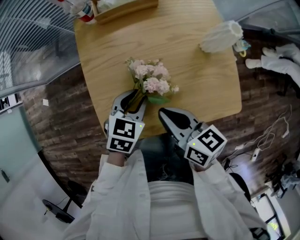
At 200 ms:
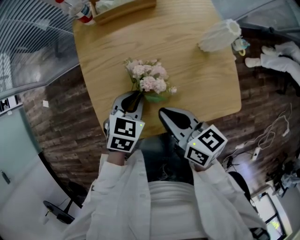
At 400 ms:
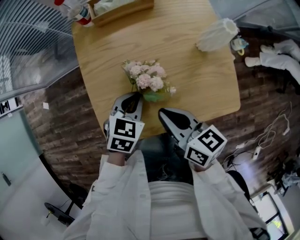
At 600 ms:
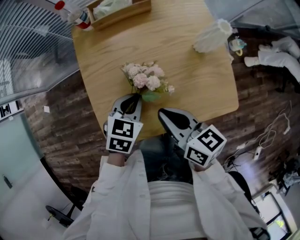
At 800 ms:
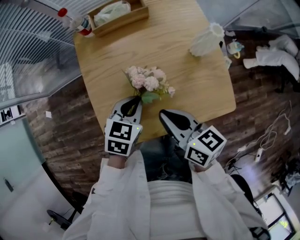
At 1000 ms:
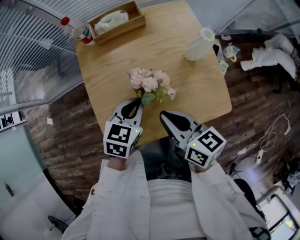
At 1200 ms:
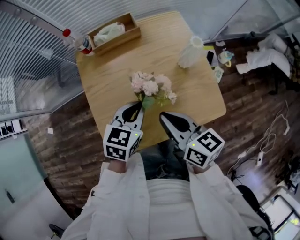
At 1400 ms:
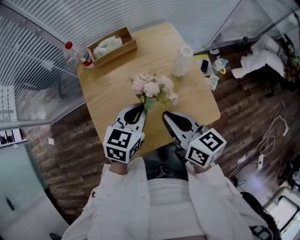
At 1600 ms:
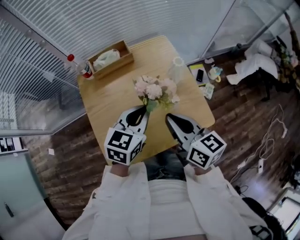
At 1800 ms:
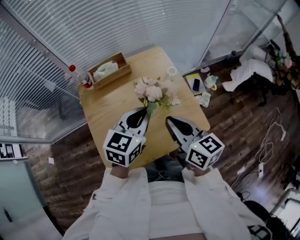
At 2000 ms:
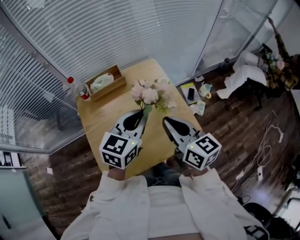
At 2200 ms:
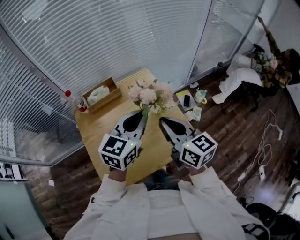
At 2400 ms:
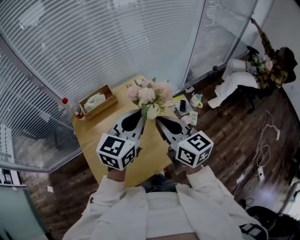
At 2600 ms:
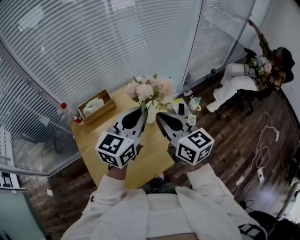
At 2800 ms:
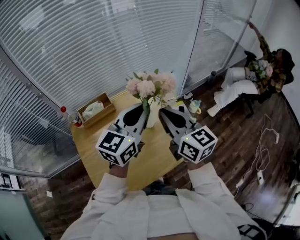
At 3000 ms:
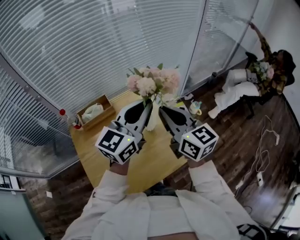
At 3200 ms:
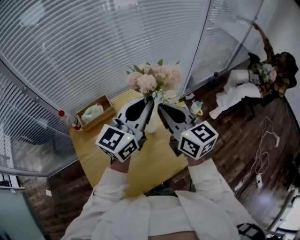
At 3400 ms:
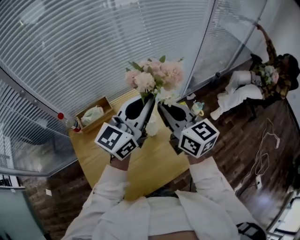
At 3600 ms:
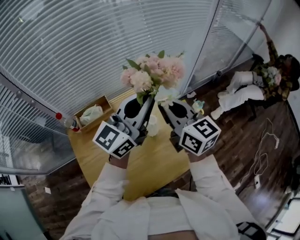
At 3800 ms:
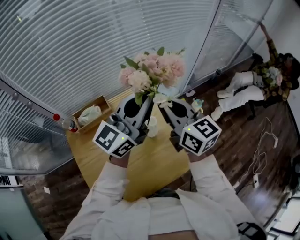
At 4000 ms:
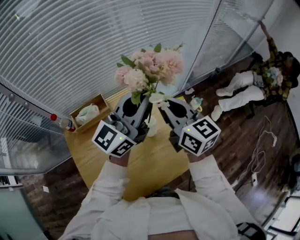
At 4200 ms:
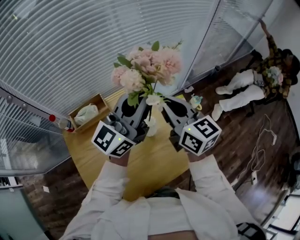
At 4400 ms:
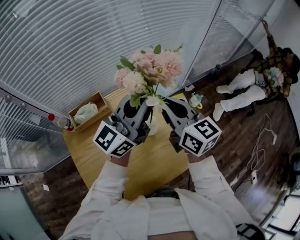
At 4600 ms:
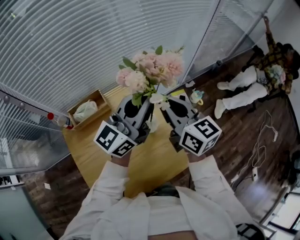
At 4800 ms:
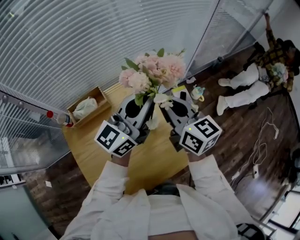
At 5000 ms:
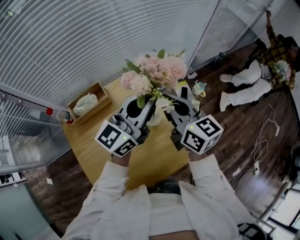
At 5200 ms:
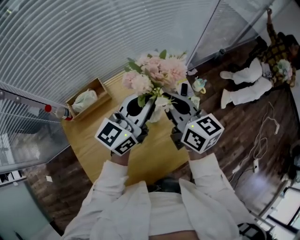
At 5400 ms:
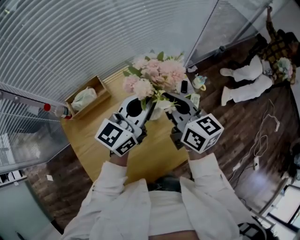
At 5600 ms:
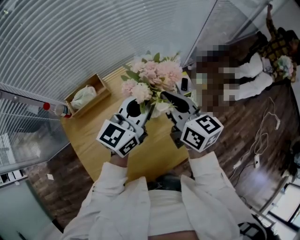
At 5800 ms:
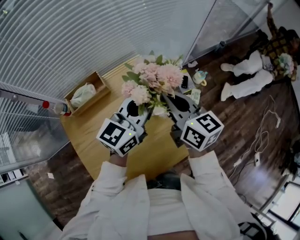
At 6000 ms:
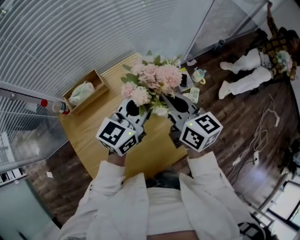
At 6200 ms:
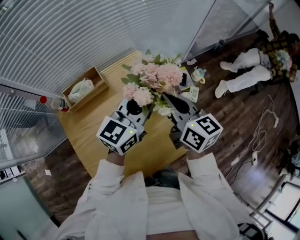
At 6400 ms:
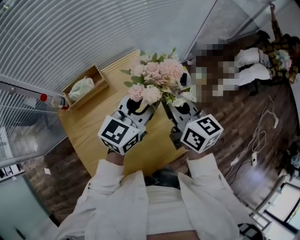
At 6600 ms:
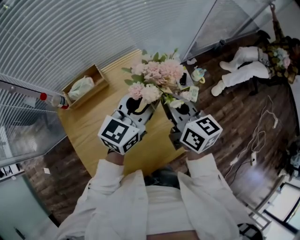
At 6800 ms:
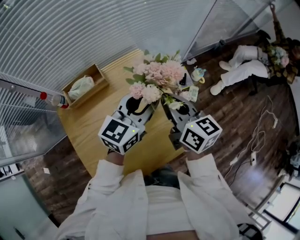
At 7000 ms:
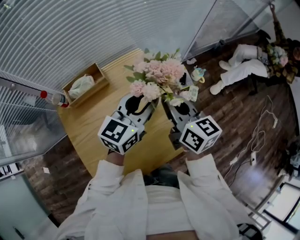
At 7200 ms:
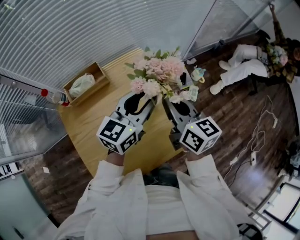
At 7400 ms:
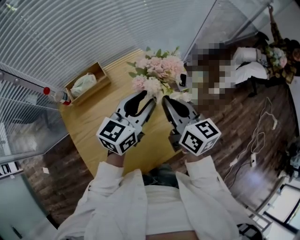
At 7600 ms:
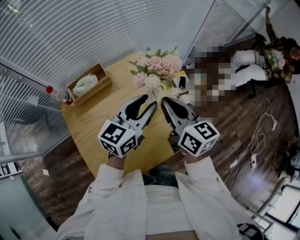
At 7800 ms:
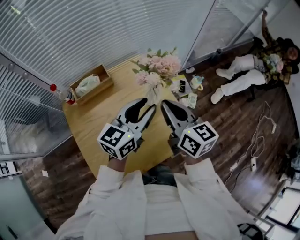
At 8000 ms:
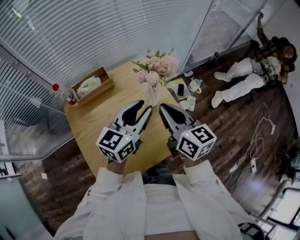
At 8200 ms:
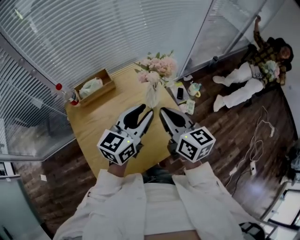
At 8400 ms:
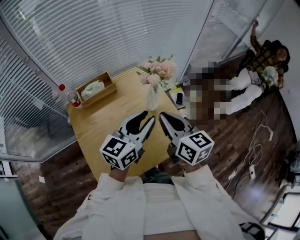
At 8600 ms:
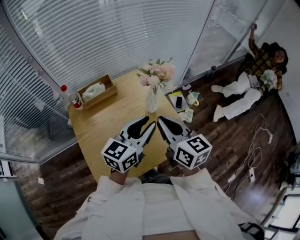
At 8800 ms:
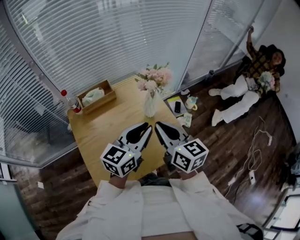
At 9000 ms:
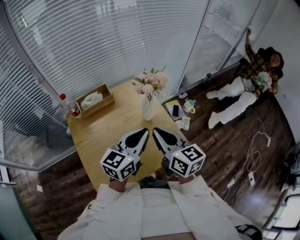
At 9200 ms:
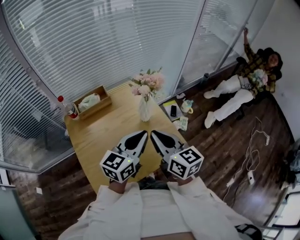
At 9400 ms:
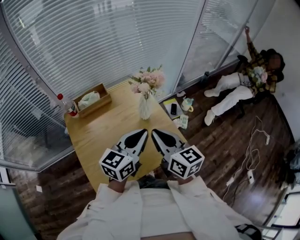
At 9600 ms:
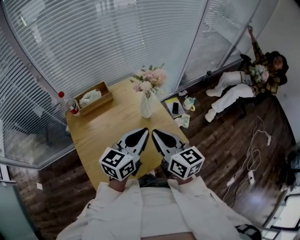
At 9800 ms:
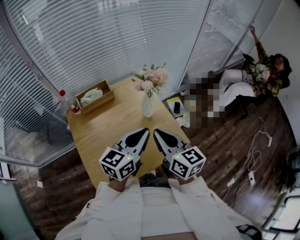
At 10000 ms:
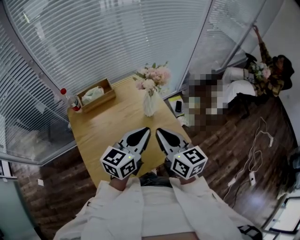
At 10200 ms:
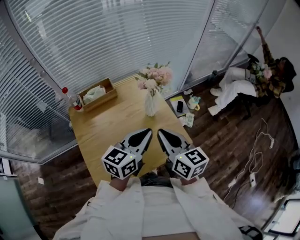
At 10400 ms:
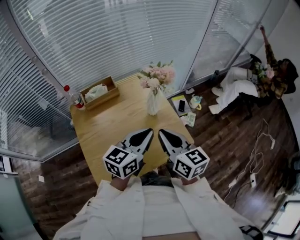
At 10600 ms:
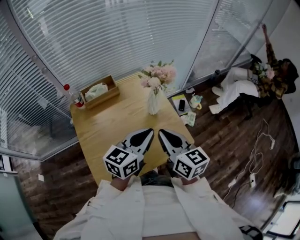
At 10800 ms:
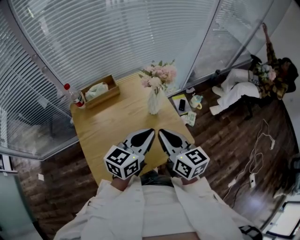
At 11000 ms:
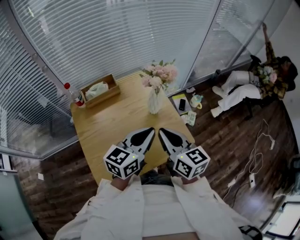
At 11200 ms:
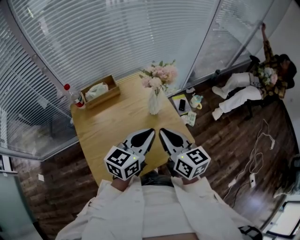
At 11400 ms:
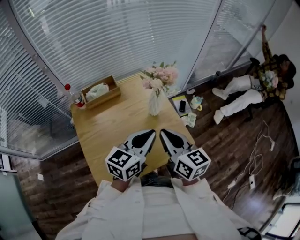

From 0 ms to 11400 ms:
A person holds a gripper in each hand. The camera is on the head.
From 0 ms to 1400 ms: The grippers both shift upward and to the right by about 10 cm. The left gripper closes.
From 1400 ms to 2800 ms: The left gripper moves upward, to the right and forward, approximately 25 cm, and tips its fingers upward by approximately 30 degrees. The right gripper goes some 20 cm upward, forward and to the right, and rotates about 30 degrees.
From 2800 ms to 4200 ms: The two grippers go approximately 10 cm forward. The left gripper changes its angle by some 30 degrees.
From 4200 ms to 5600 ms: The right gripper is displaced downward by roughly 5 cm; the left gripper is displaced downward by about 10 cm, and swivels some 20 degrees.
From 5600 ms to 7200 ms: The left gripper opens its fingers.
From 7200 ms to 8600 ms: Both grippers move backward, approximately 10 cm.
From 8600 ms to 10000 ms: The left gripper closes its fingers.
From 10000 ms to 11400 ms: The two grippers keep their place.

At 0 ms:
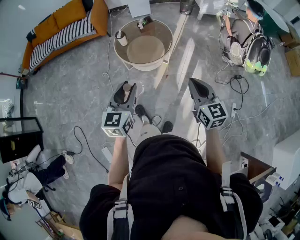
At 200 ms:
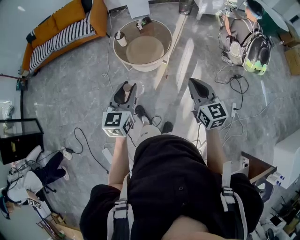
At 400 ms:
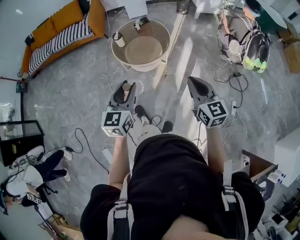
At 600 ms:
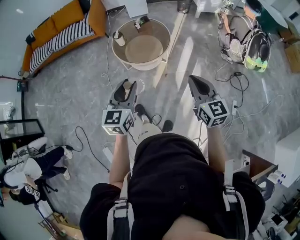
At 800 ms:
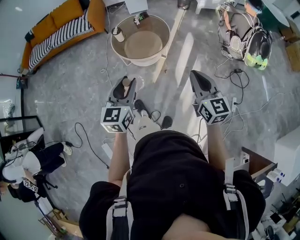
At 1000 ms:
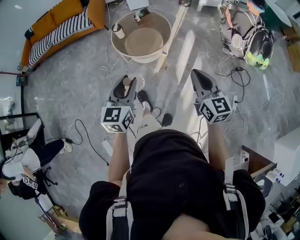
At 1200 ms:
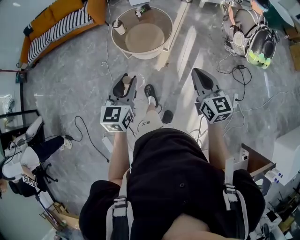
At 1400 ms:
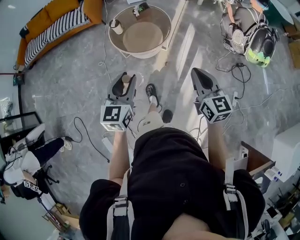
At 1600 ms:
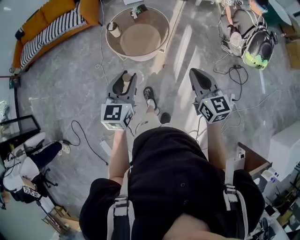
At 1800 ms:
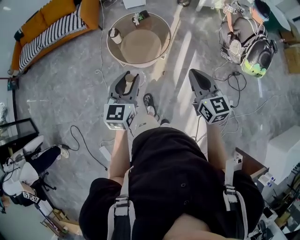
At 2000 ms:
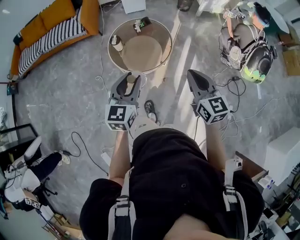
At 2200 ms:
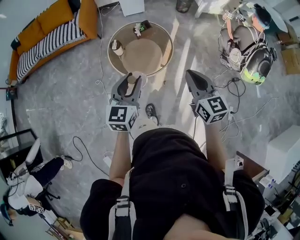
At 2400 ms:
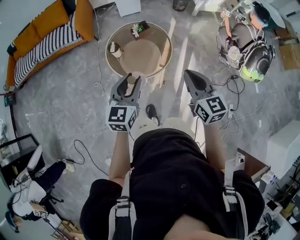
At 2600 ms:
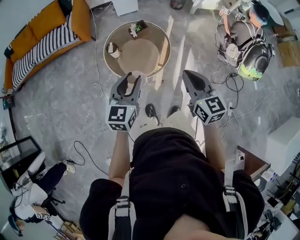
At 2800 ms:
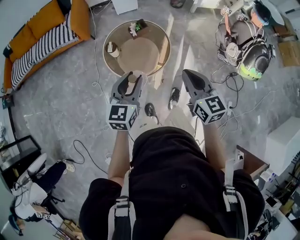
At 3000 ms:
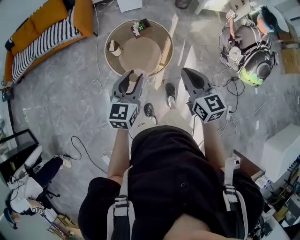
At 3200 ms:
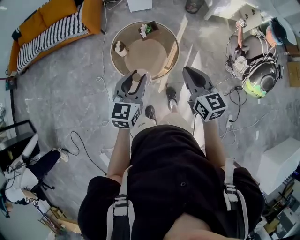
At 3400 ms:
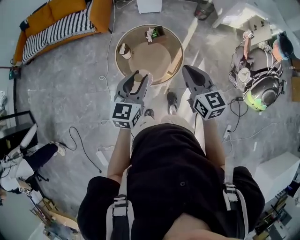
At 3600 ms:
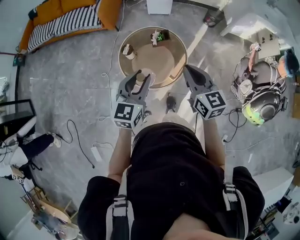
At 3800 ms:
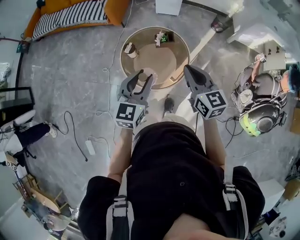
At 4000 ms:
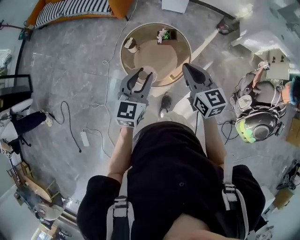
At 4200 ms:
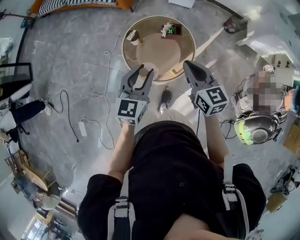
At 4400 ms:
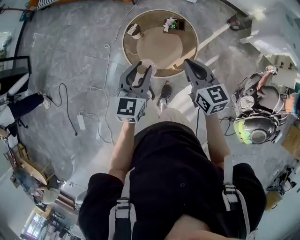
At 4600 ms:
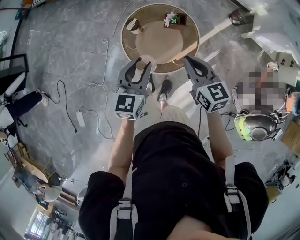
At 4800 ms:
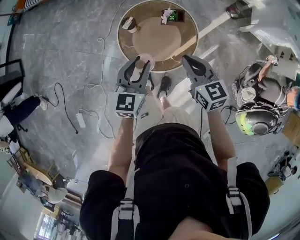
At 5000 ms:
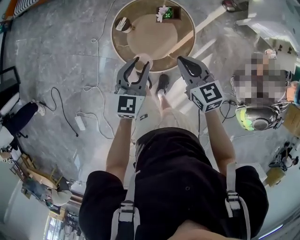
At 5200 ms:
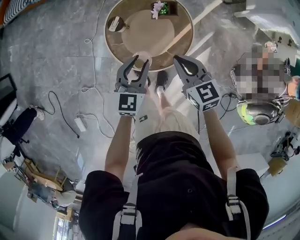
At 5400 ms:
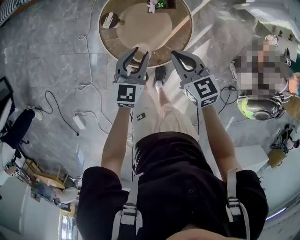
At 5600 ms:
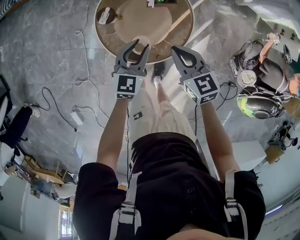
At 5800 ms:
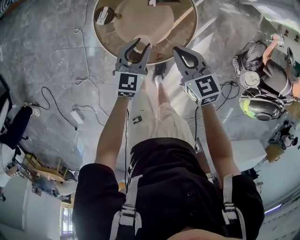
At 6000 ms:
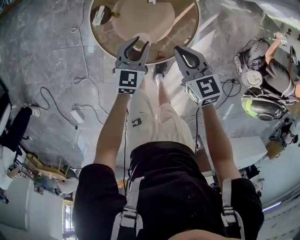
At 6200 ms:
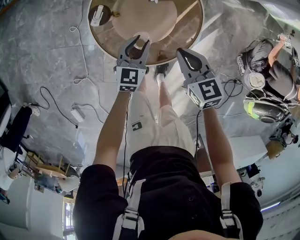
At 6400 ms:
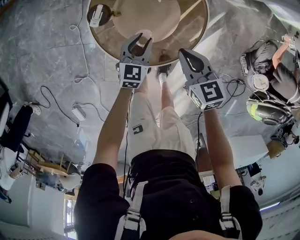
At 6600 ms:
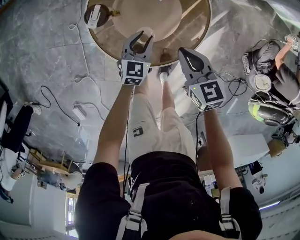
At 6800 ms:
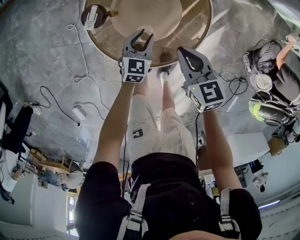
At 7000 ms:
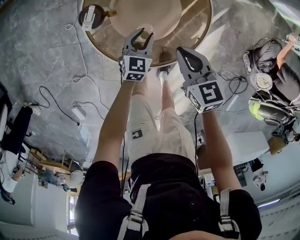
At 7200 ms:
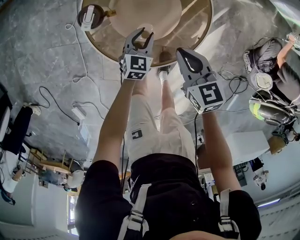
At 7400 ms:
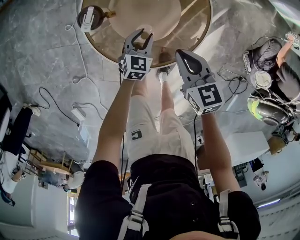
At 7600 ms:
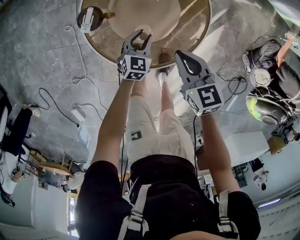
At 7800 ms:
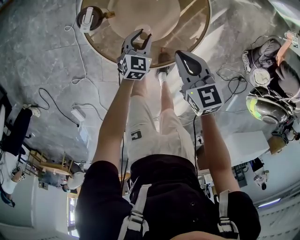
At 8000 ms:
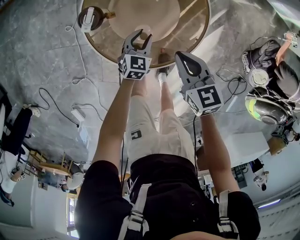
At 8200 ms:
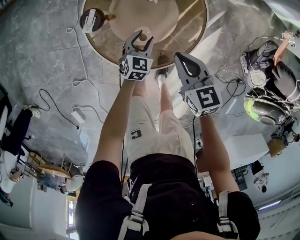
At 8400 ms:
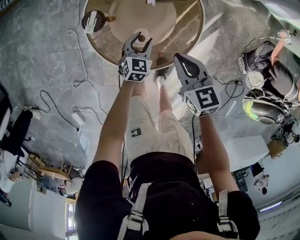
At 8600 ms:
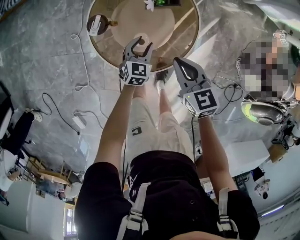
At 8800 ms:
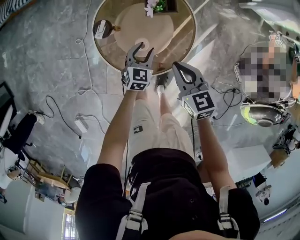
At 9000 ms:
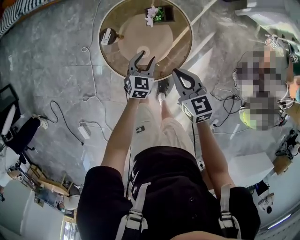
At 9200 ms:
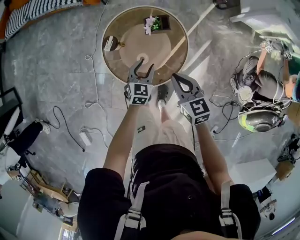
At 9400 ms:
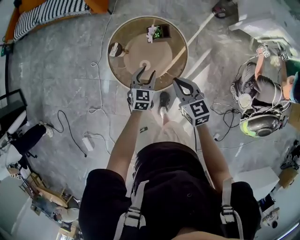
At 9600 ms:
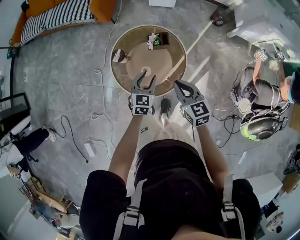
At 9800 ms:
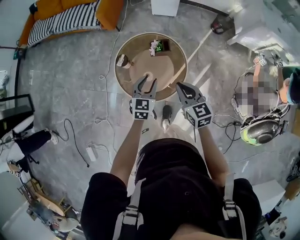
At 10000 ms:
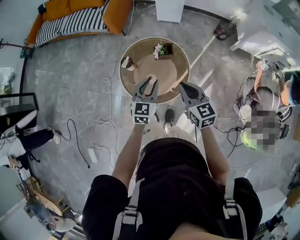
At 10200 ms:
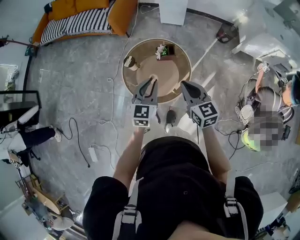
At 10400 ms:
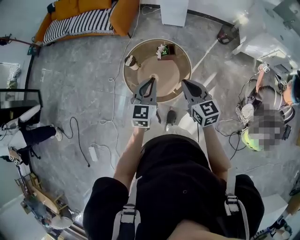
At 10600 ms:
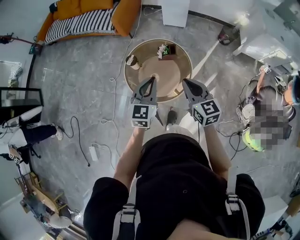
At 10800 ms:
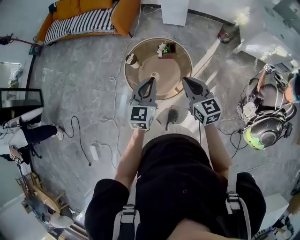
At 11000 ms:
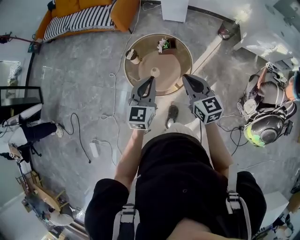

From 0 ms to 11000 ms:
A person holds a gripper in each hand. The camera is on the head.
From 0 ms to 1600 ms: The grippers both shift forward by roughly 5 cm.
From 1600 ms to 3200 ms: The grippers both shift forward by approximately 20 cm.
From 3200 ms to 4800 ms: The right gripper moves some 20 cm, and changes its angle by roughly 30 degrees. The left gripper ends up about 15 cm from where it was, and changes its angle by some 20 degrees.
From 4800 ms to 6200 ms: Both grippers move downward, roughly 25 cm.
From 6200 ms to 7800 ms: The left gripper moves downward, approximately 15 cm.
From 7800 ms to 9400 ms: Both grippers move upward, approximately 25 cm.
From 9400 ms to 11000 ms: The left gripper goes approximately 30 cm upward and backward, rotates some 20 degrees, and closes its fingers. Meanwhile the right gripper is displaced upward and backward by some 15 cm.

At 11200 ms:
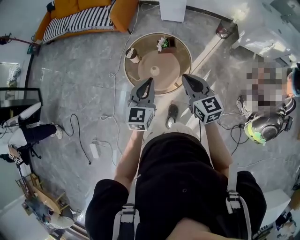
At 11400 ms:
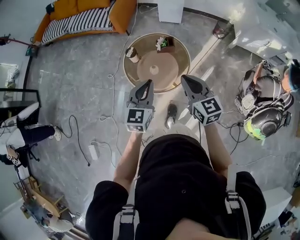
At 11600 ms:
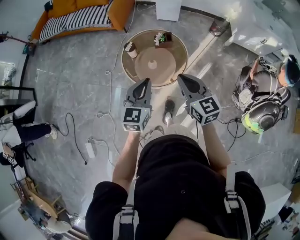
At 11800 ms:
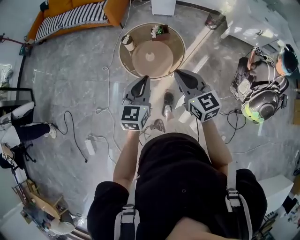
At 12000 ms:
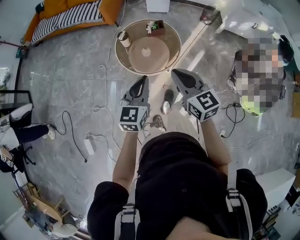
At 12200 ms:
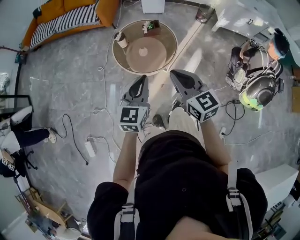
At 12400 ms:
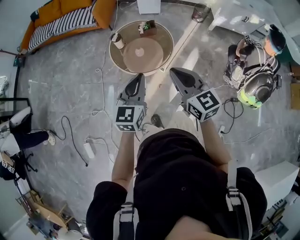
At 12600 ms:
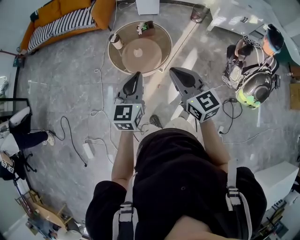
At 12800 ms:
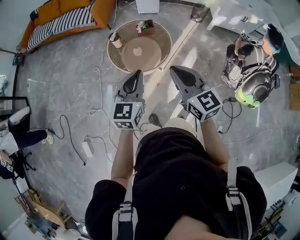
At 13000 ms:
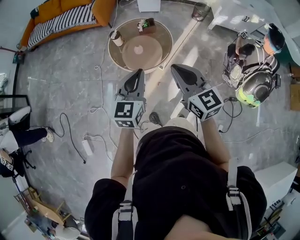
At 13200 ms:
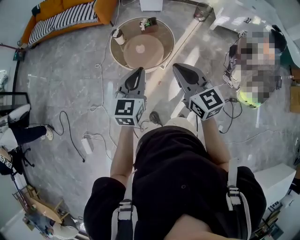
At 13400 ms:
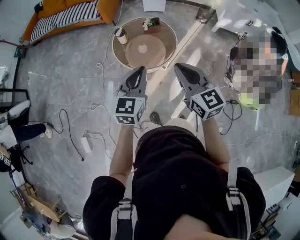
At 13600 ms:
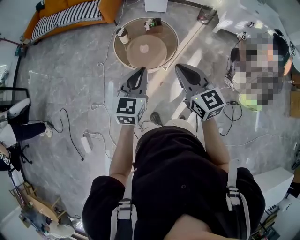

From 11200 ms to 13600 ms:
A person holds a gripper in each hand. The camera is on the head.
From 11200 ms to 12400 ms: The grippers both shift backward by some 20 cm.
From 12400 ms to 13600 ms: The grippers make only small movements.
